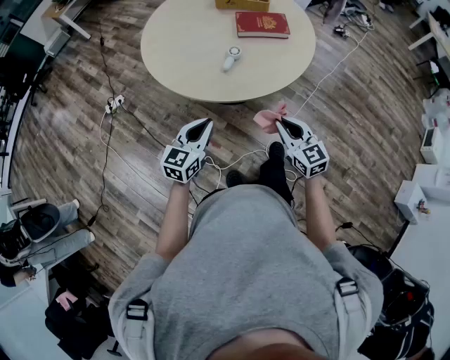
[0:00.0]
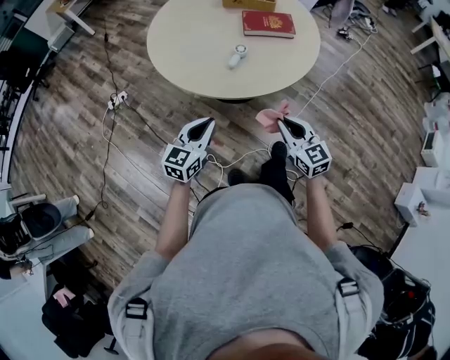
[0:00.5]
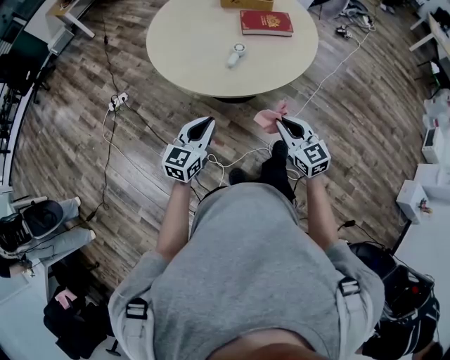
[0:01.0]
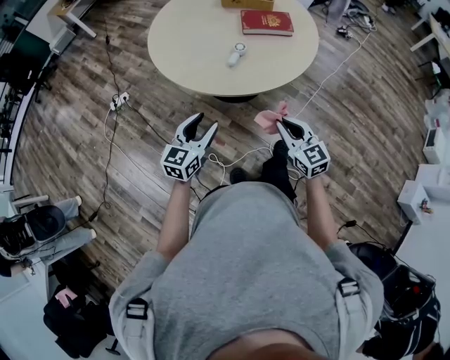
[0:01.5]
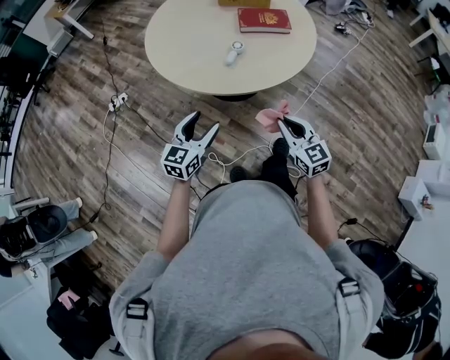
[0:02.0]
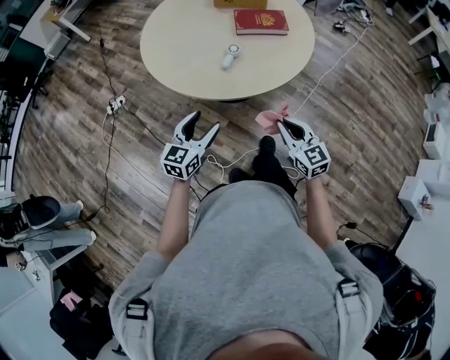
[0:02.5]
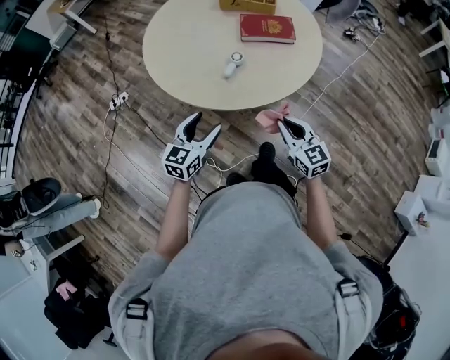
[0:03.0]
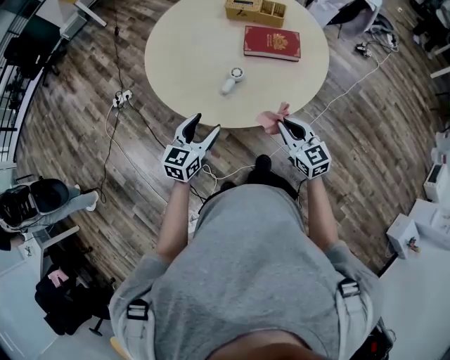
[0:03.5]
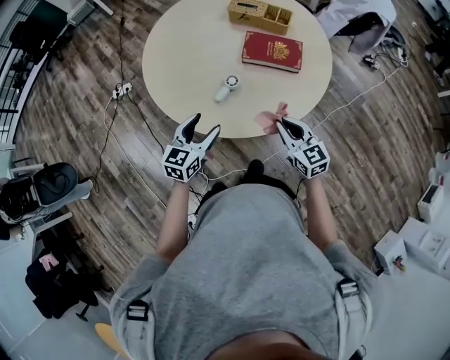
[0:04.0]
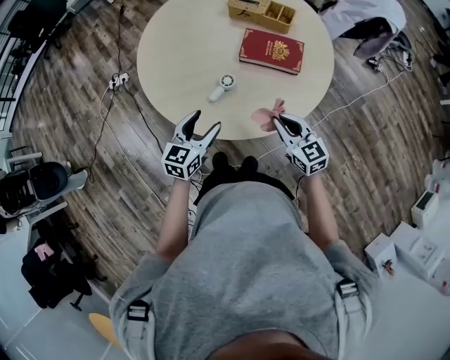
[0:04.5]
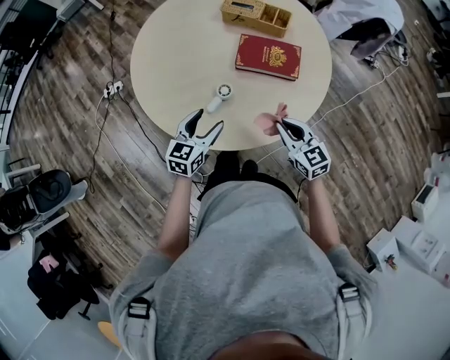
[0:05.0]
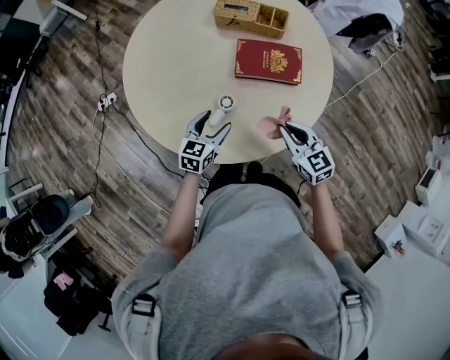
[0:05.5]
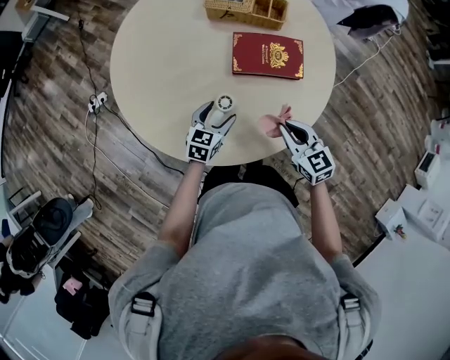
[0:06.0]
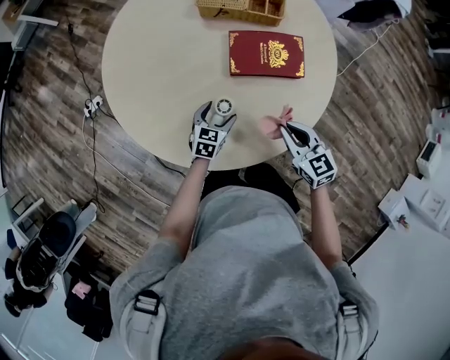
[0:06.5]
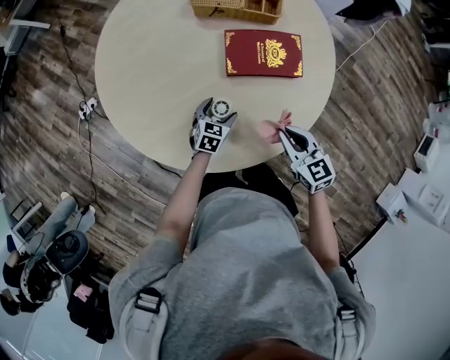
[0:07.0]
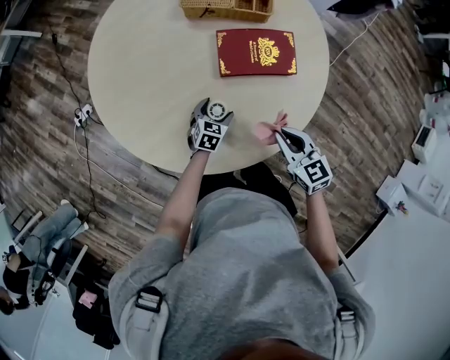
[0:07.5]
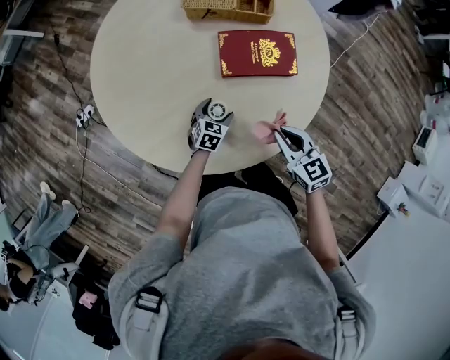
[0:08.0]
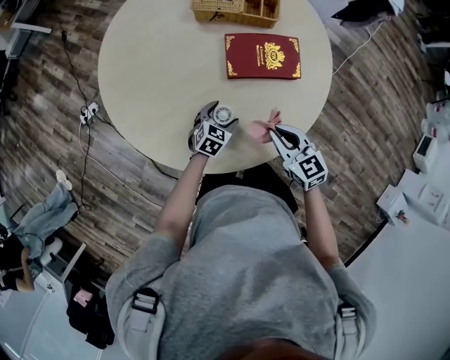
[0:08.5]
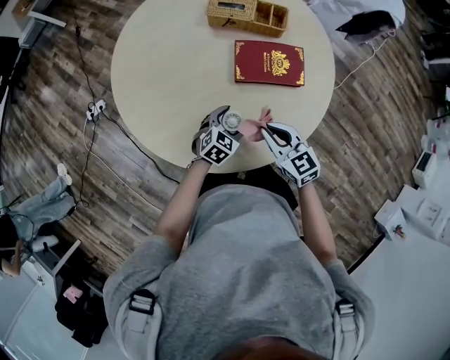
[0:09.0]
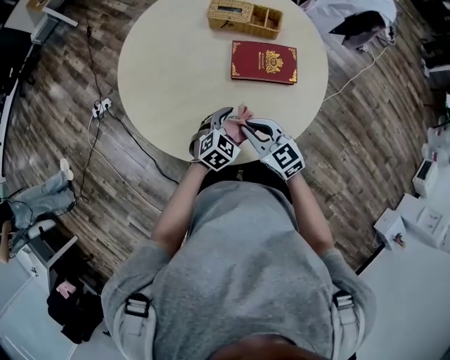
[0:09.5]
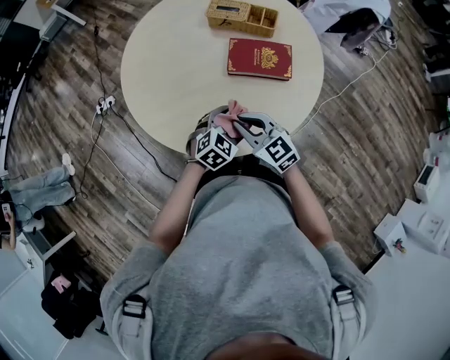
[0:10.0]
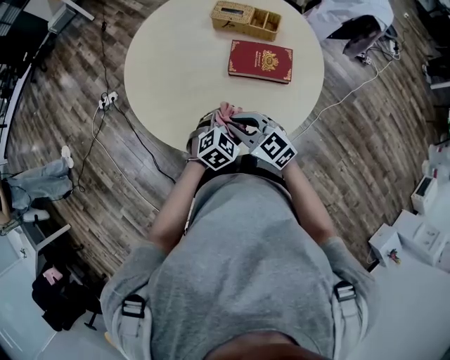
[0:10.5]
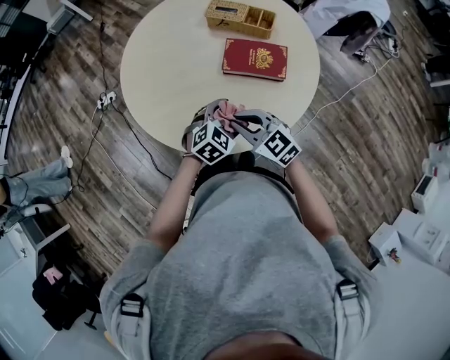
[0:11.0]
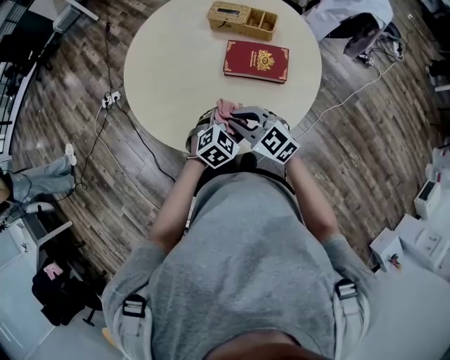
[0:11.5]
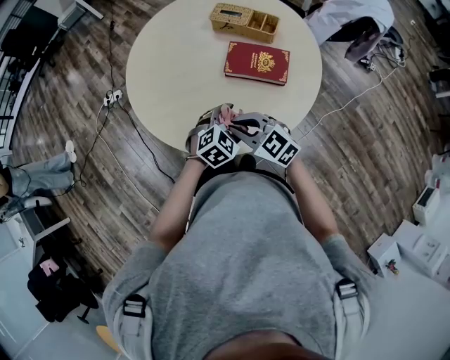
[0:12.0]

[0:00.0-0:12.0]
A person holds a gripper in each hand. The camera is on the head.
0:00.0 to 0:02.0: The left gripper opens up.
0:02.0 to 0:04.0: The two grippers go roughly 25 cm forward and to the right.
0:04.0 to 0:06.0: The right gripper shifts some 15 cm forward and downward. Meanwhile the left gripper heads forward and downward, covering roughly 25 cm.
0:06.0 to 0:08.0: The left gripper shifts some 10 cm downward.
0:08.0 to 0:10.0: The left gripper goes about 25 cm upward and backward, and turns by roughly 20 degrees; the right gripper travels to the left, upward and backward by roughly 15 cm, and rotates approximately 30 degrees.
0:10.0 to 0:12.0: The left gripper moves roughly 5 cm.

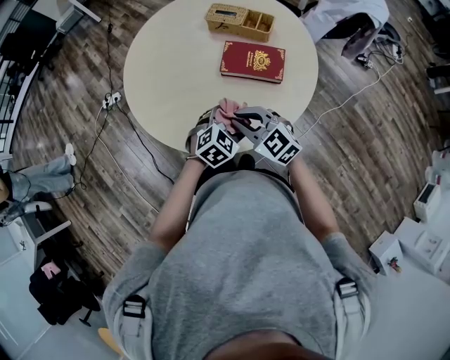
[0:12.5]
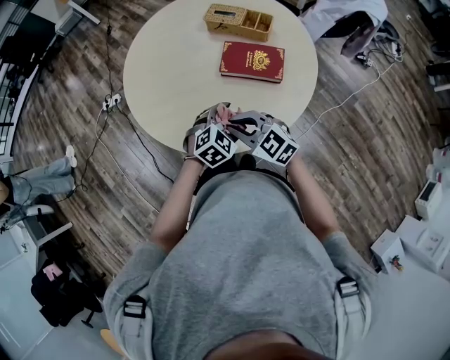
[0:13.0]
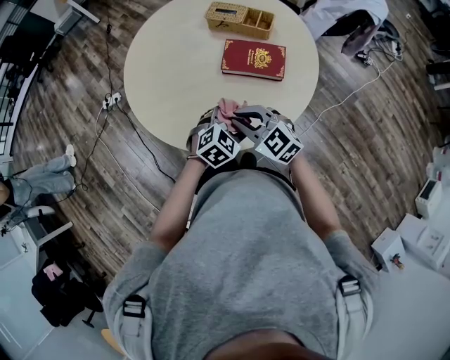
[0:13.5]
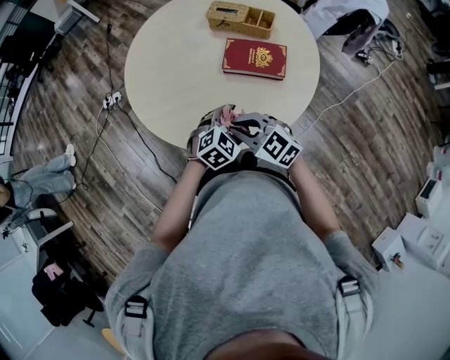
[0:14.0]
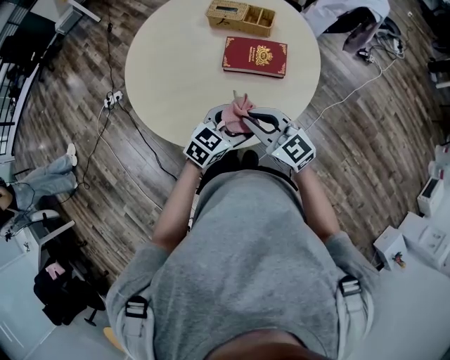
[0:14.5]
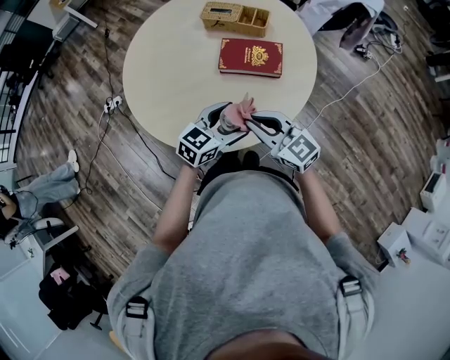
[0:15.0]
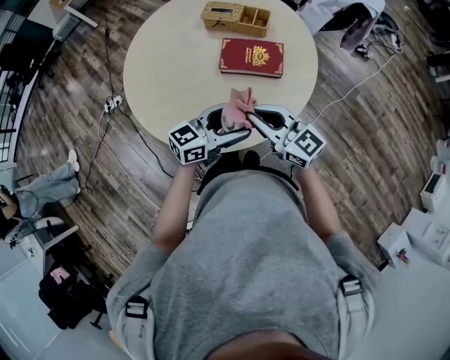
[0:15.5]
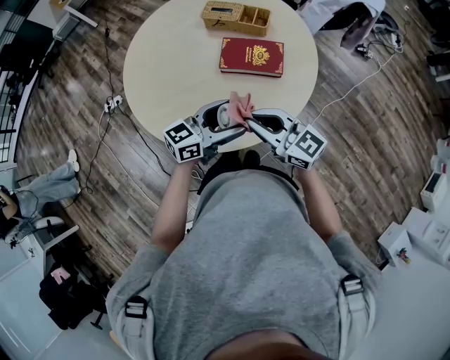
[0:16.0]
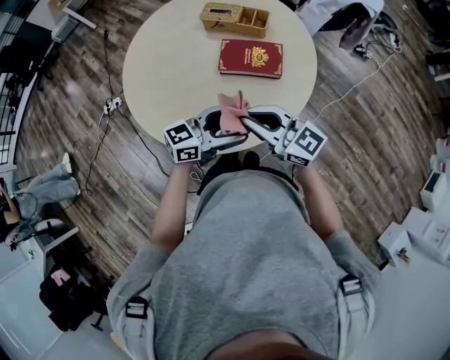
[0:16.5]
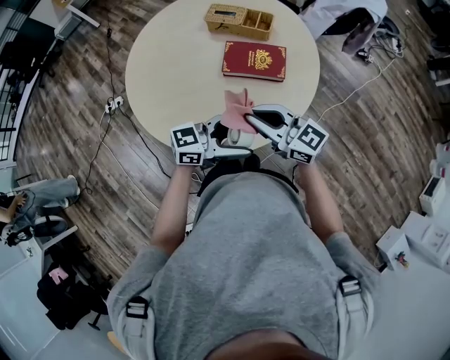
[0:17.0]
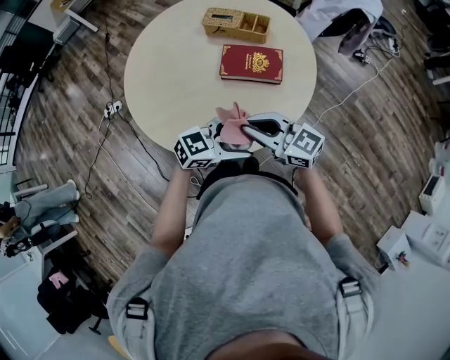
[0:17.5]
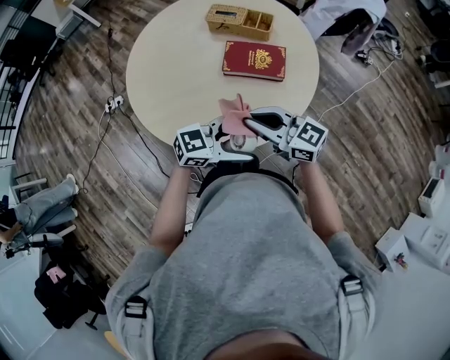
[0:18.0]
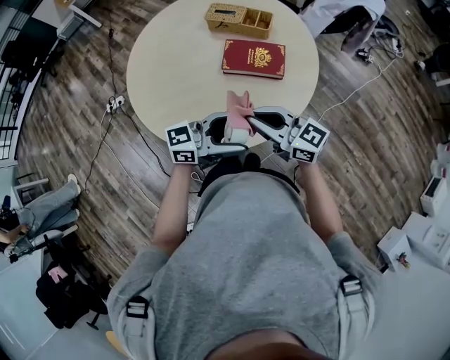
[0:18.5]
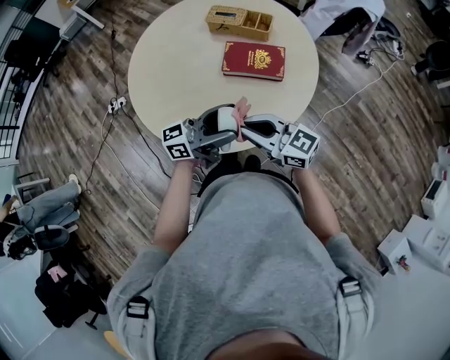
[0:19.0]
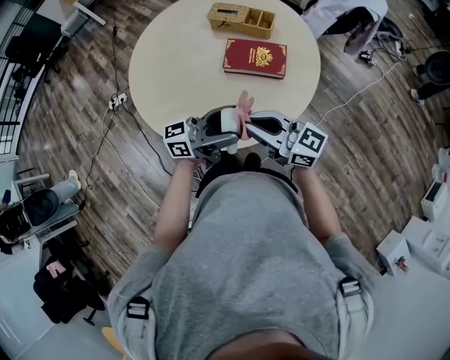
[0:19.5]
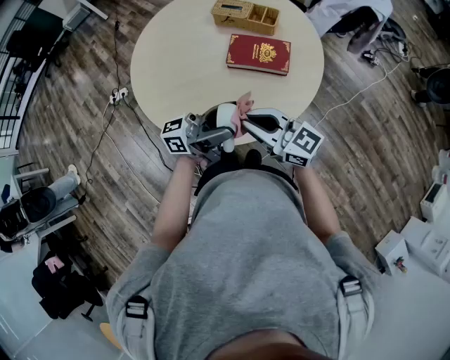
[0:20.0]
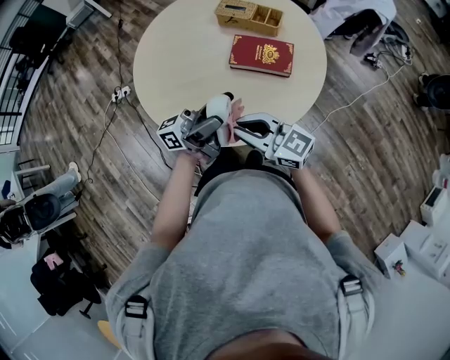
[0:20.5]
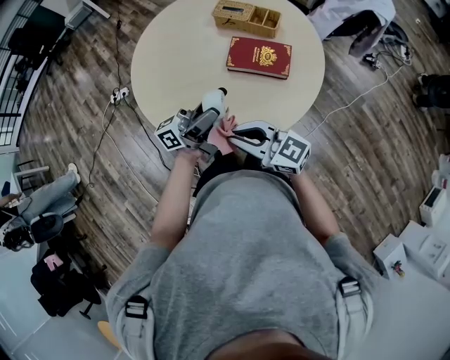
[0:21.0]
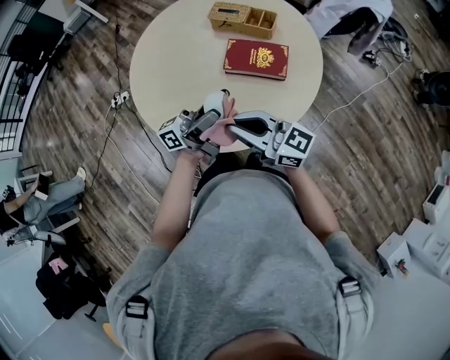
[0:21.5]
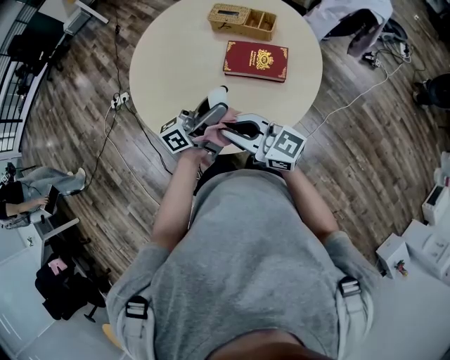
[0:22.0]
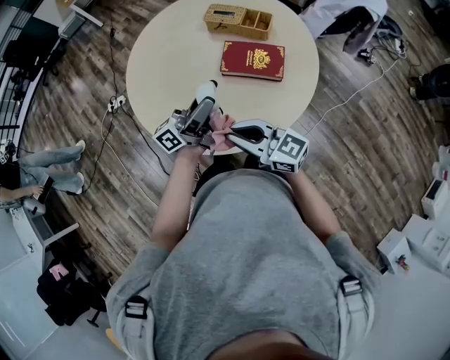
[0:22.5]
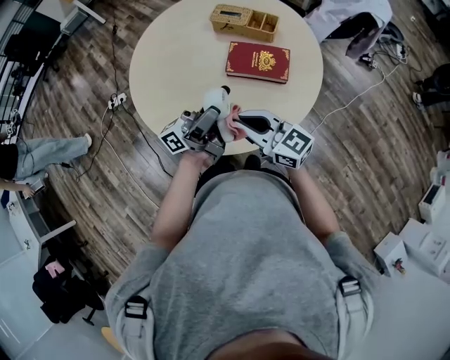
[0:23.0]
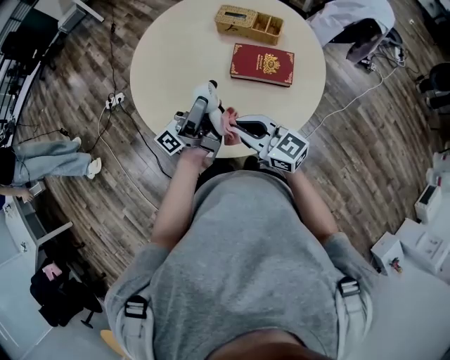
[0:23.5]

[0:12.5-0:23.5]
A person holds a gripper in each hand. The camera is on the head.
0:12.5 to 0:14.5: The left gripper changes its angle by approximately 30 degrees.
0:14.5 to 0:16.0: The left gripper moves upward, about 5 cm, and swivels roughly 30 degrees.
0:16.0 to 0:18.0: The left gripper changes place by approximately 10 cm, and turns by about 30 degrees.
0:18.0 to 0:20.0: The left gripper shifts roughly 5 cm upward, and tips its fingers upward by approximately 40 degrees.
0:20.0 to 0:21.5: The left gripper moves approximately 5 cm.
0:21.5 to 0:23.5: The right gripper ends up approximately 5 cm from where it was; the left gripper travels to the left and forward by about 10 cm.

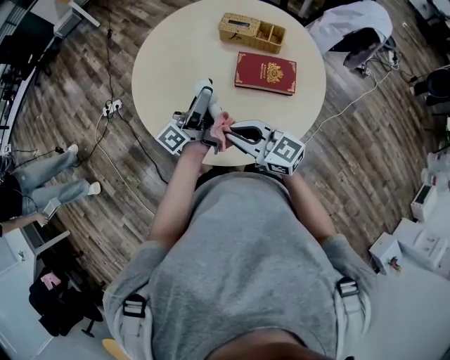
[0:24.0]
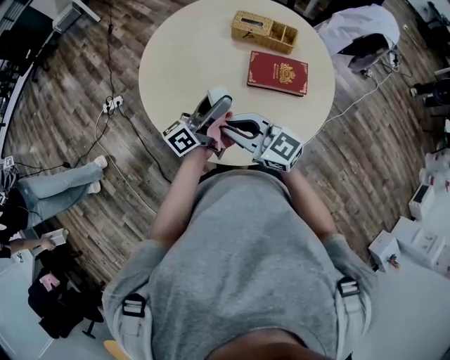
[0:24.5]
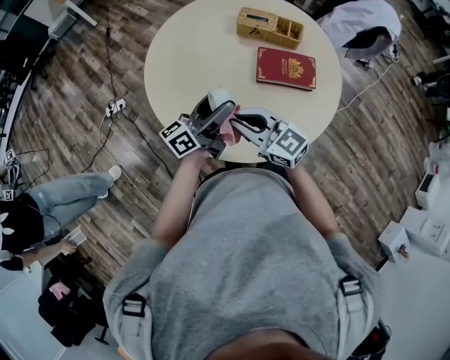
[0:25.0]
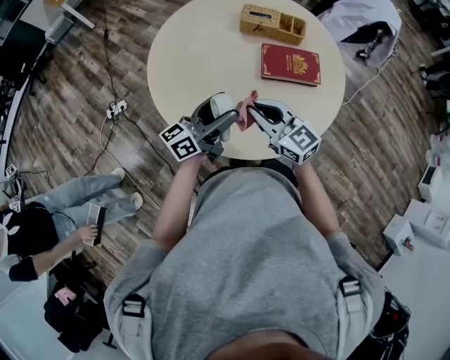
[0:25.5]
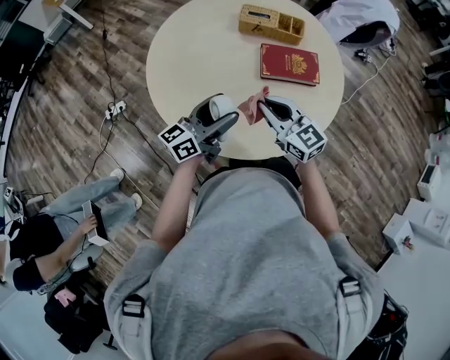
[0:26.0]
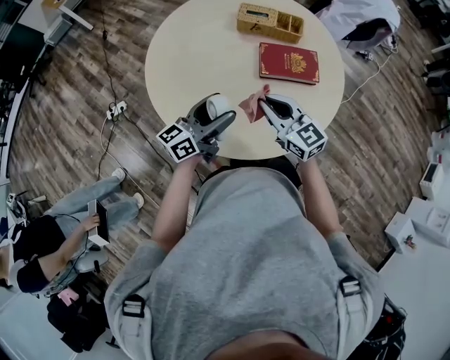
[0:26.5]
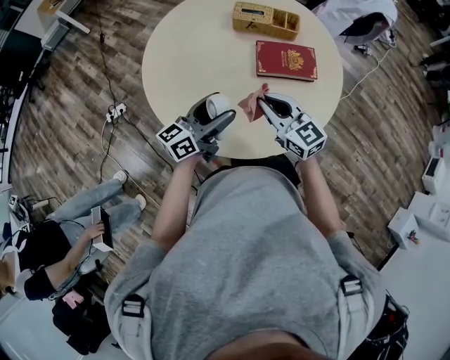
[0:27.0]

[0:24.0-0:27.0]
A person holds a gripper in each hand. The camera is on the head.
0:24.0 to 0:25.5: The left gripper goes some 10 cm to the left and downward, and swivels about 30 degrees. The right gripper shifts about 10 cm to the left and forward, and turns by approximately 20 degrees.
0:25.5 to 0:27.0: The right gripper travels to the right by about 5 cm.

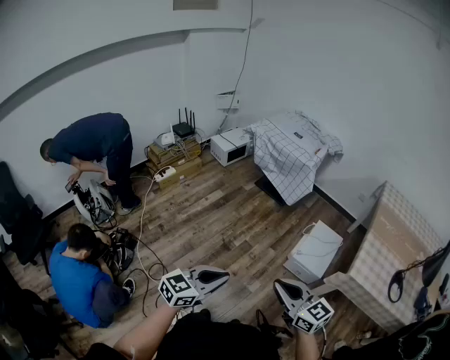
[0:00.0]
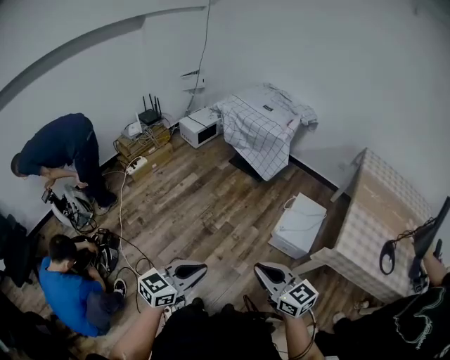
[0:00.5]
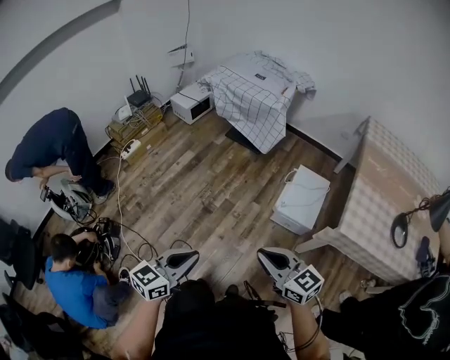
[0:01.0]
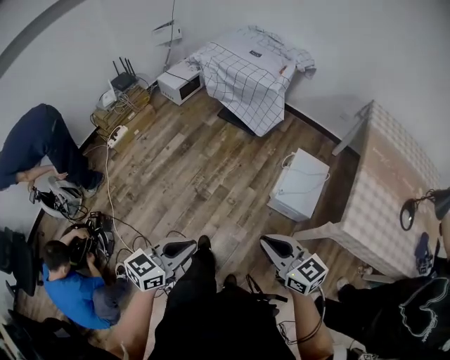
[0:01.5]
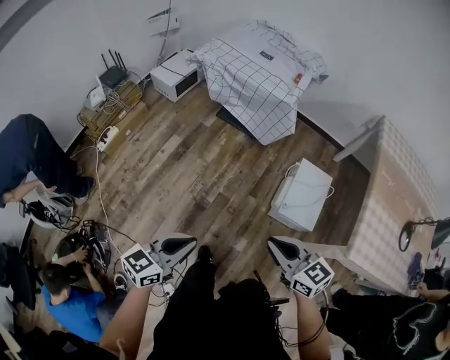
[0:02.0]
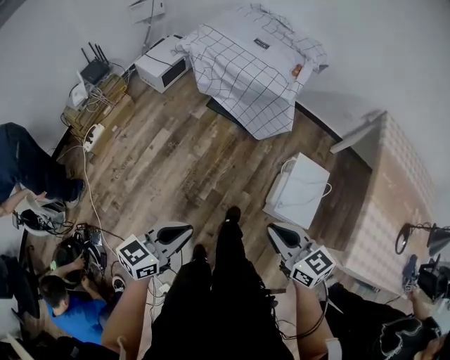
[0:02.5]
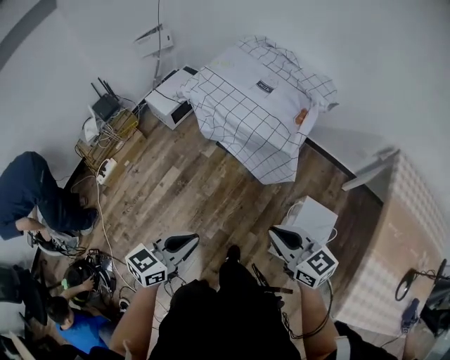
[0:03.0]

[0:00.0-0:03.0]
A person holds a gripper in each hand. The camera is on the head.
0:00.0 to 0:01.5: Both grippers move forward and downward, approximately 15 cm.
0:01.5 to 0:03.0: The pair of grippers is taken forward, roughly 50 cm.
